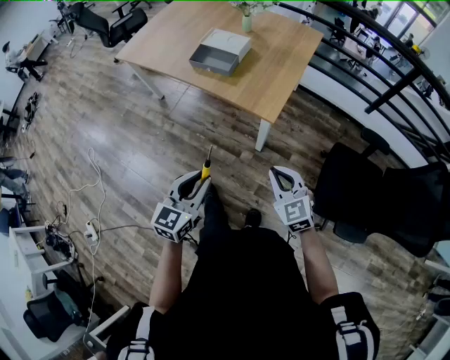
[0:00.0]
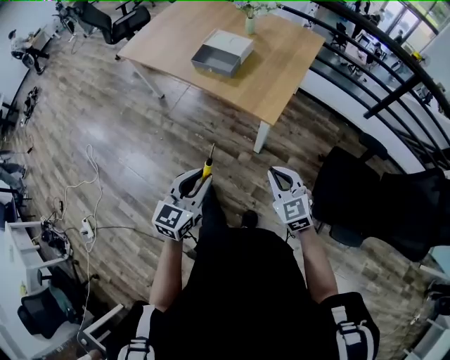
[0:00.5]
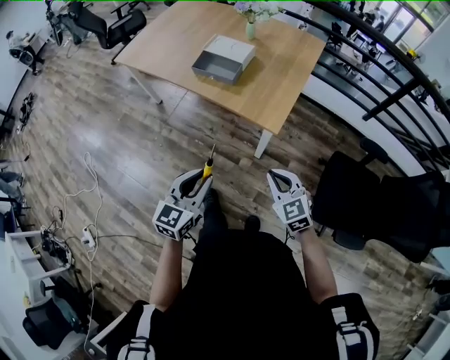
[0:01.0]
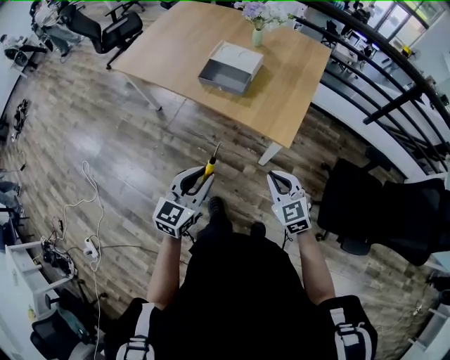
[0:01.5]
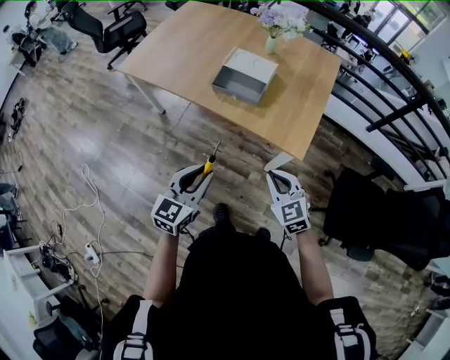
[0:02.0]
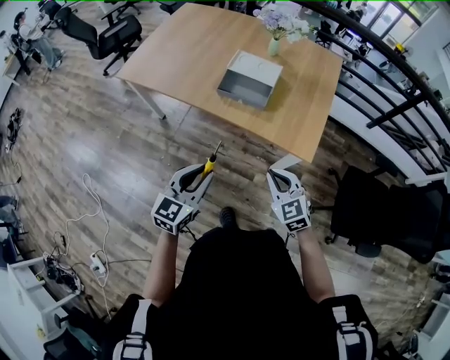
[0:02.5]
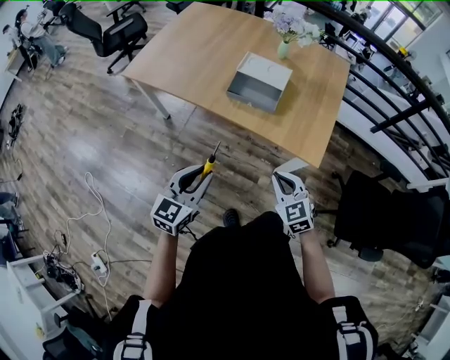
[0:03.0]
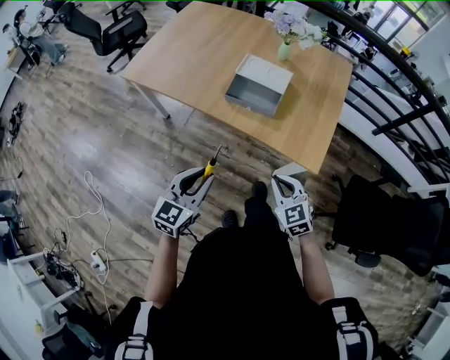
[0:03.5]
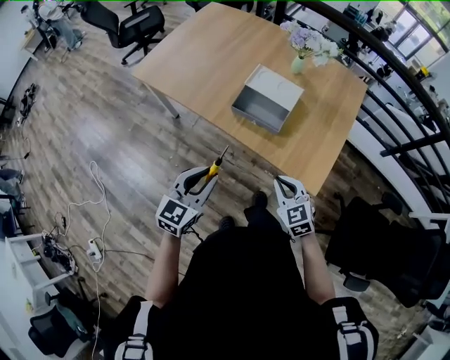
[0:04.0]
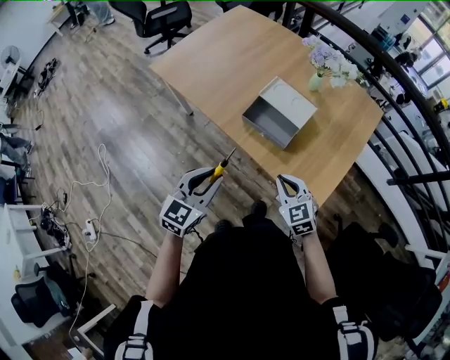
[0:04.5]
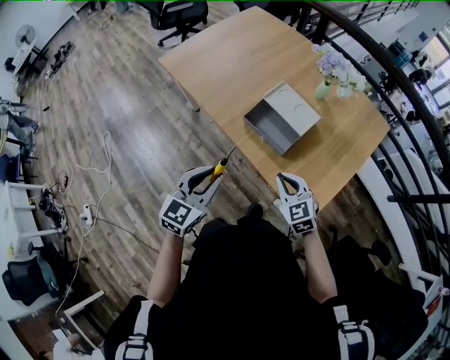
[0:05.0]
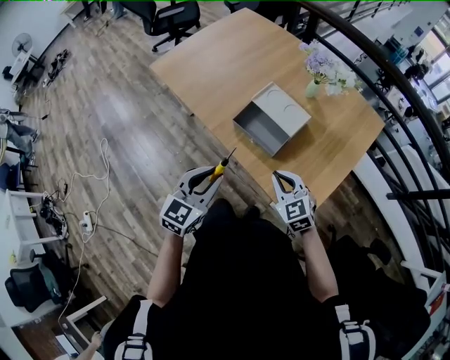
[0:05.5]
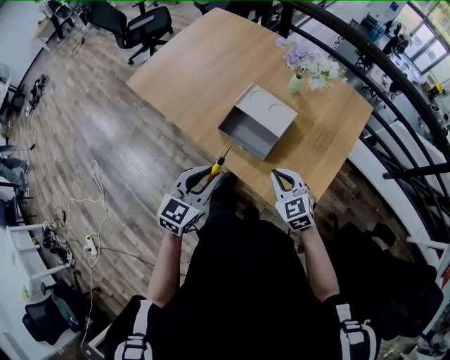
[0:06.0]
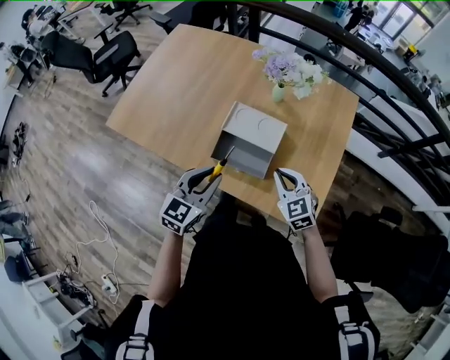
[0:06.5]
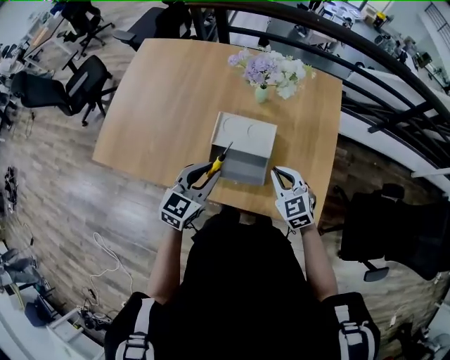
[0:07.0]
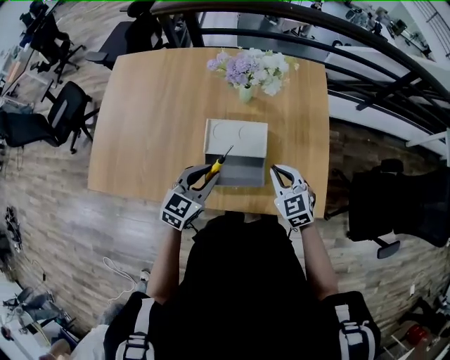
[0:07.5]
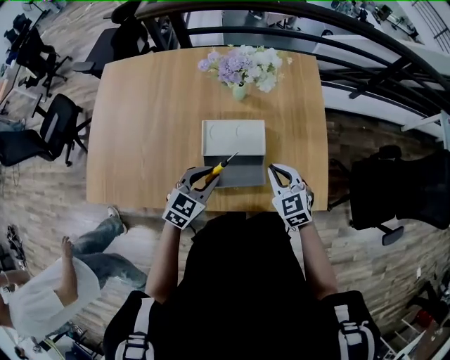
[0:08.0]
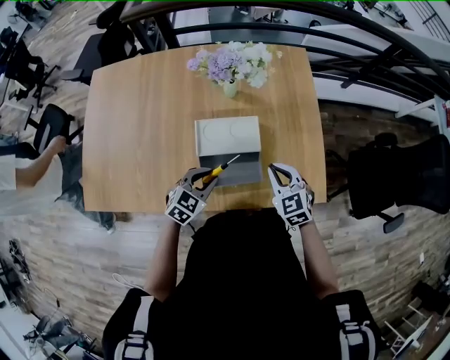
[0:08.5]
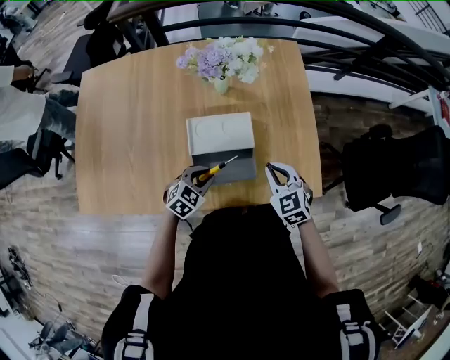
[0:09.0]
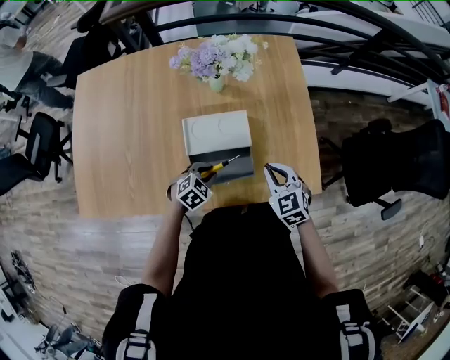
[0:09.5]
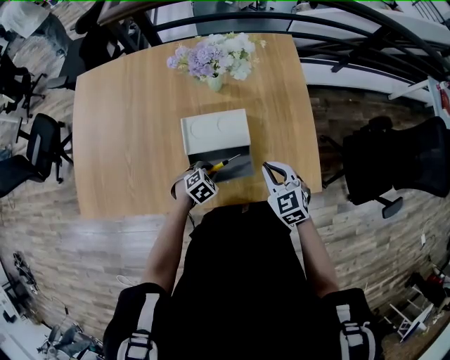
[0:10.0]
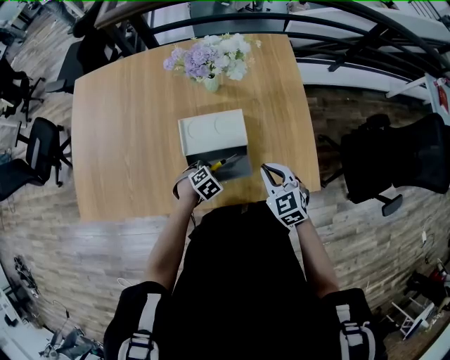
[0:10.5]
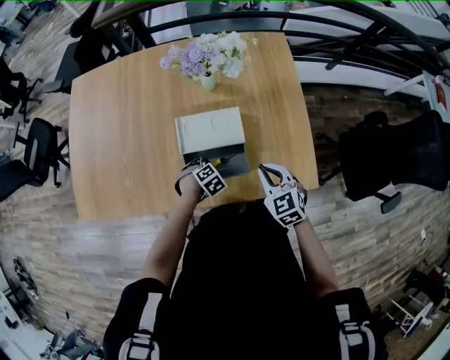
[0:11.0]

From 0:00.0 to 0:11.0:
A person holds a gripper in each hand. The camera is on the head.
From 0:00.0 to 0:02.0: The left gripper travels forward and to the left by approximately 25 cm. The right gripper shifts some 25 cm to the left and forward.
From 0:02.0 to 0:03.5: Both grippers move to the left and forward, approximately 10 cm.
From 0:03.5 to 0:05.5: The right gripper is displaced forward and to the right by some 20 cm, and changes its angle by approximately 20 degrees. The left gripper goes about 15 cm to the right and forward.
From 0:05.5 to 0:07.5: The right gripper moves some 15 cm, and turns by approximately 40 degrees. Meanwhile the left gripper moves some 30 cm, and rotates about 40 degrees.
From 0:07.5 to 0:09.0: The left gripper heads downward, covering roughly 15 cm, and changes its angle by some 30 degrees.
From 0:09.0 to 0:11.0: The left gripper travels downward by approximately 10 cm, and angles its fingers downward, by about 30 degrees.

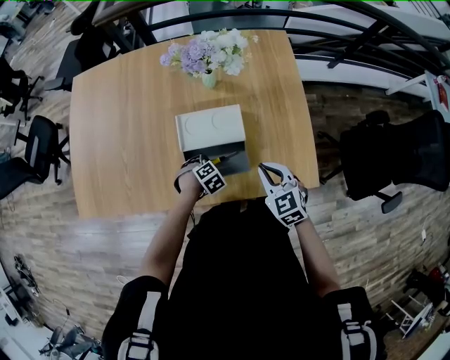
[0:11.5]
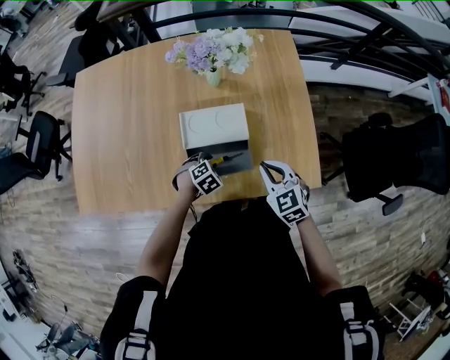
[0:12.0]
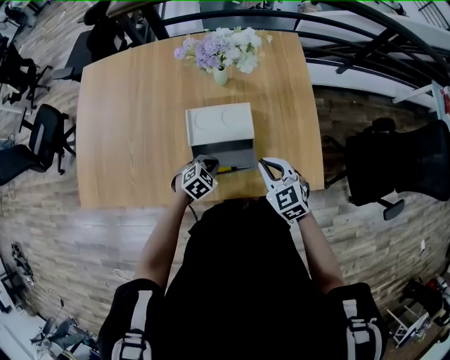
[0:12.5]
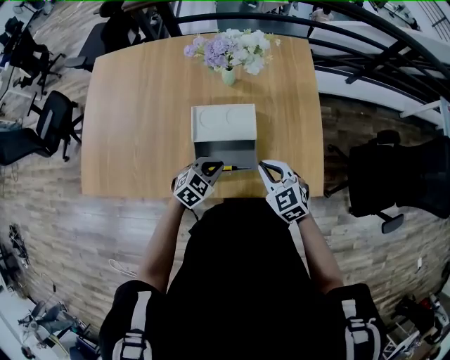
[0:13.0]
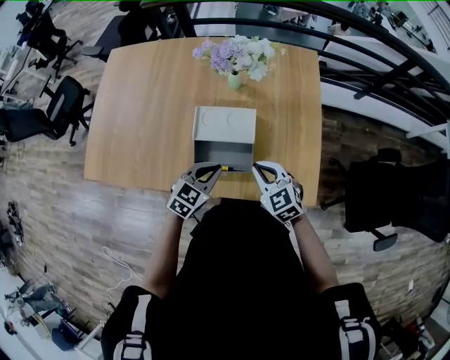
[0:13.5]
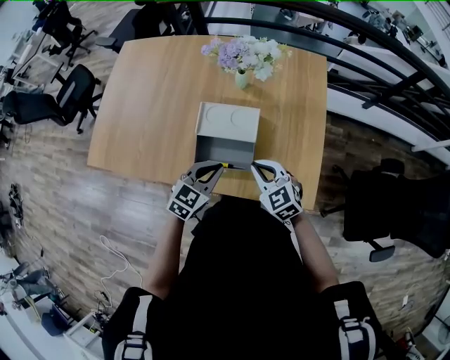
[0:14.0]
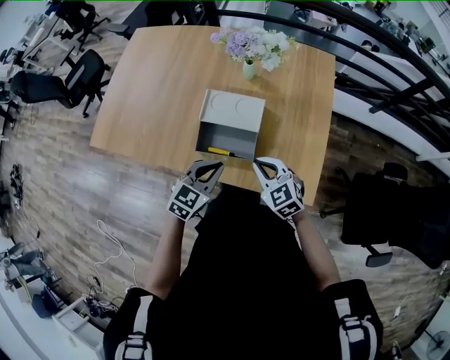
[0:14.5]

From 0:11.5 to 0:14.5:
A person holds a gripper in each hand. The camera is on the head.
From 0:11.5 to 0:13.0: The left gripper goes some 15 cm upward, tilts its fingers some 30 degrees upward, and closes.
From 0:13.0 to 0:14.5: The left gripper is displaced upward and backward by about 10 cm, and rotates roughly 30 degrees.

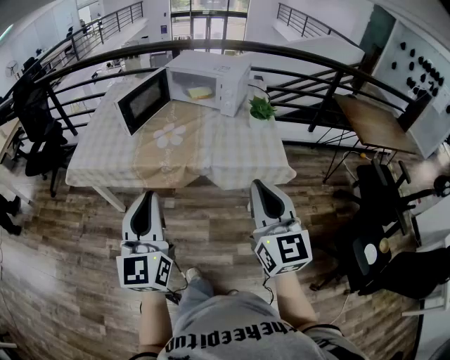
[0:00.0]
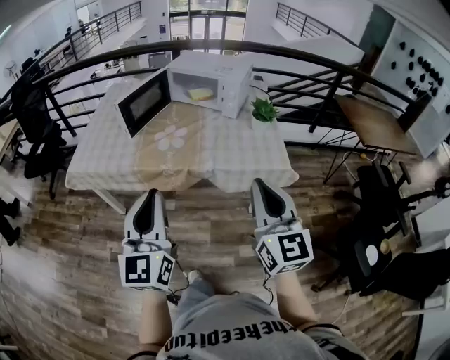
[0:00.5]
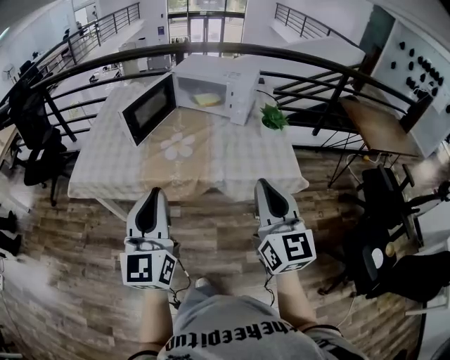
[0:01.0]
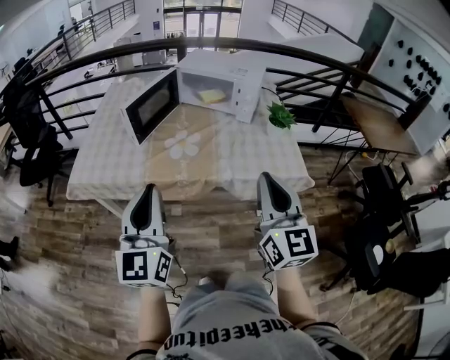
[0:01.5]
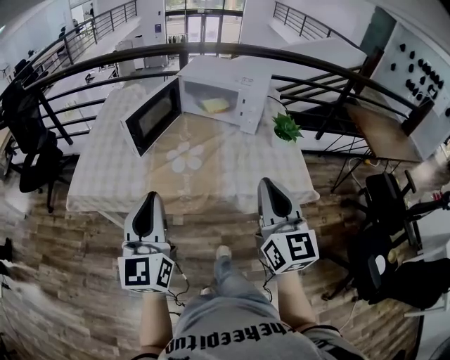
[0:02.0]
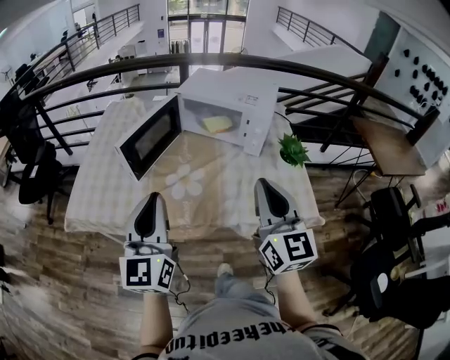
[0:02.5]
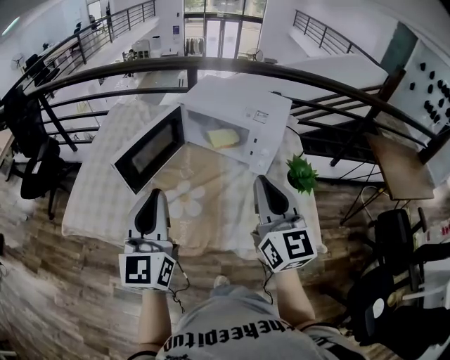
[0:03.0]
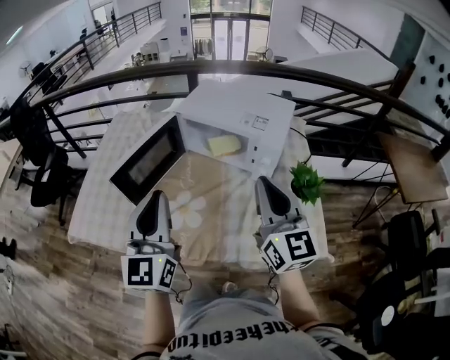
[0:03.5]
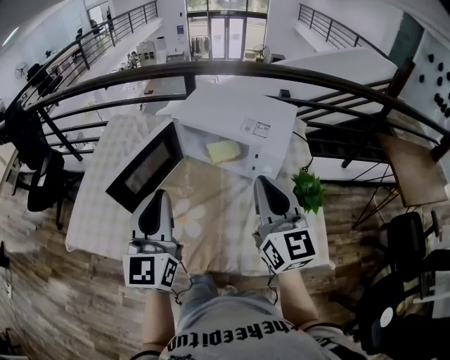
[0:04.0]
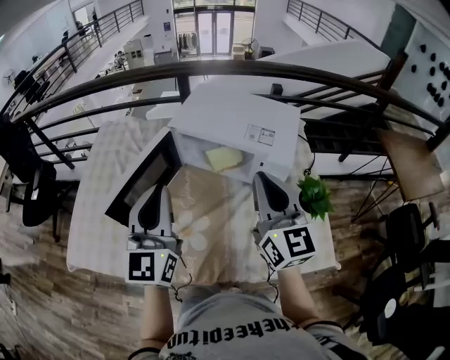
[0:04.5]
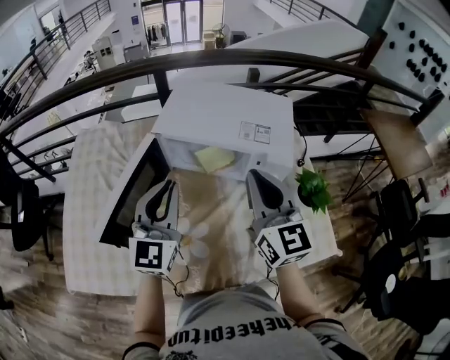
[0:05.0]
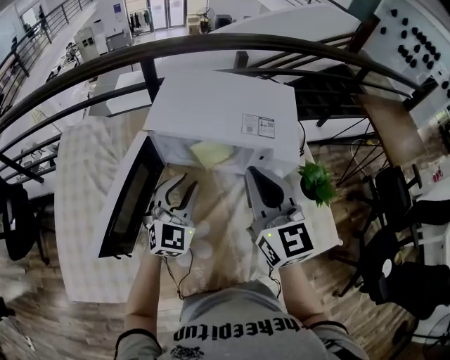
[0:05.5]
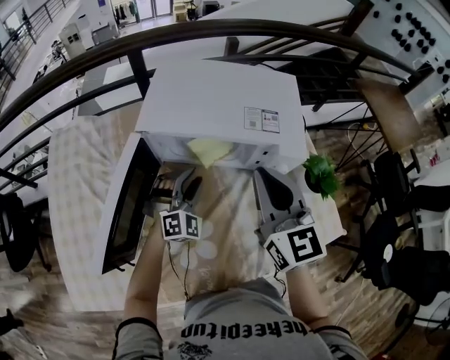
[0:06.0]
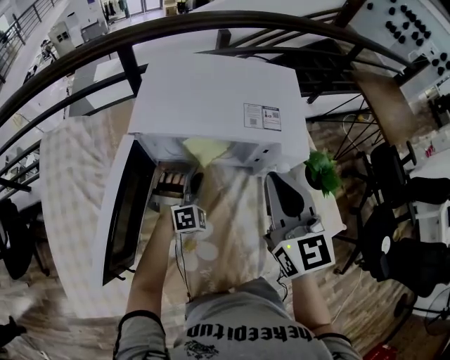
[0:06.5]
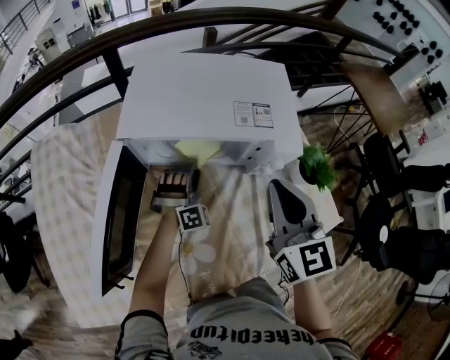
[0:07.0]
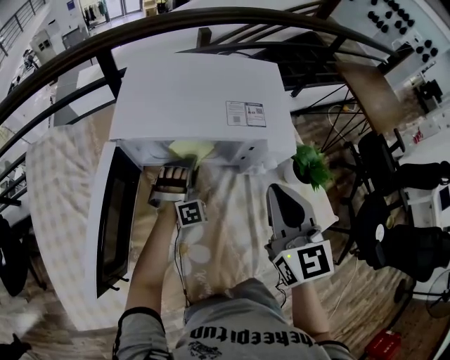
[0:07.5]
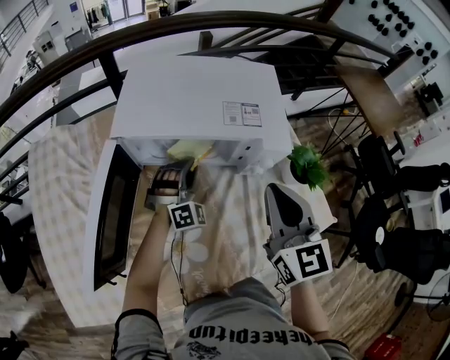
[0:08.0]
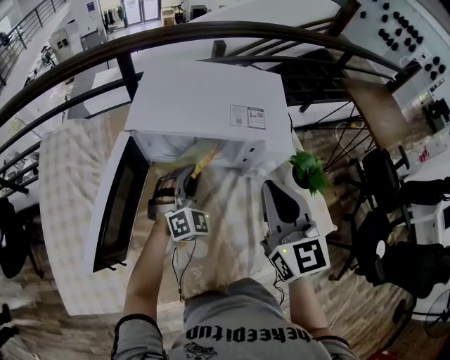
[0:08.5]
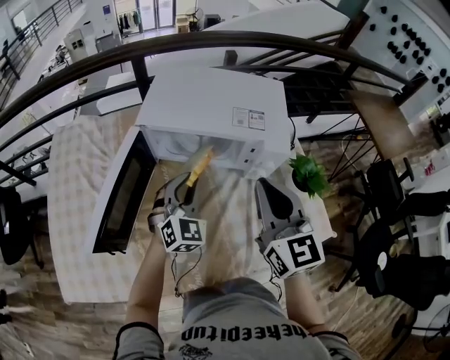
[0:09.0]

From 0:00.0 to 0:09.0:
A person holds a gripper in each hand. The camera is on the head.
From 0:00.0 to 0:02.0: The two grippers go roughly 20 cm forward and to the left.
From 0:02.0 to 0:04.5: The two grippers go approximately 35 cm forward.
From 0:04.5 to 0:07.0: The left gripper goes about 40 cm downward and forward, rotates around the line of its fingers by roughly 70 degrees, clockwise from behind, and opens up; the right gripper moves downward and forward, roughly 10 cm, and turns by about 30 degrees.
From 0:07.0 to 0:09.0: The right gripper moves some 5 cm. The left gripper shifts some 15 cm upward and backward, twists roughly 40 degrees counterclockwise, seen from behind, and closes up.

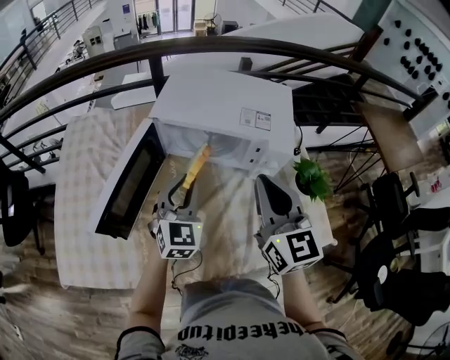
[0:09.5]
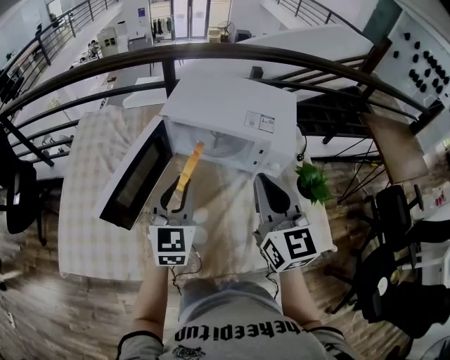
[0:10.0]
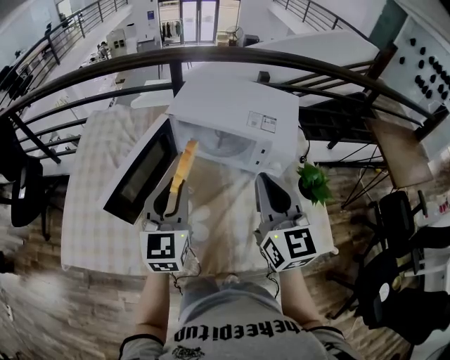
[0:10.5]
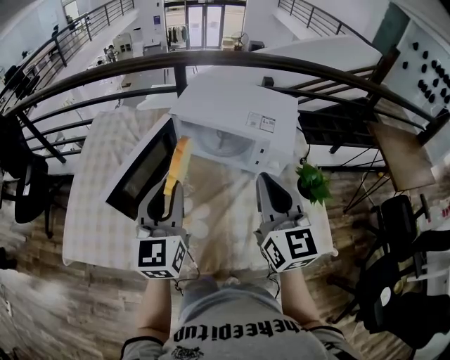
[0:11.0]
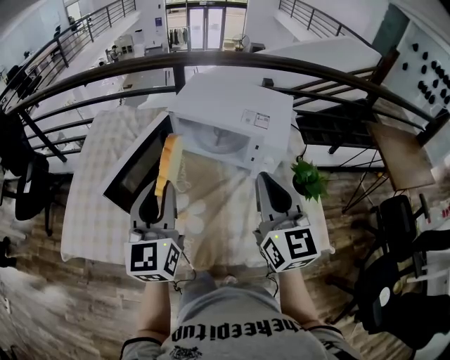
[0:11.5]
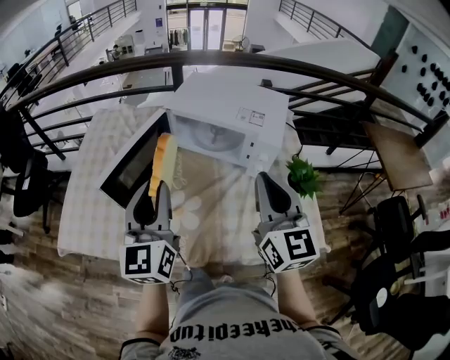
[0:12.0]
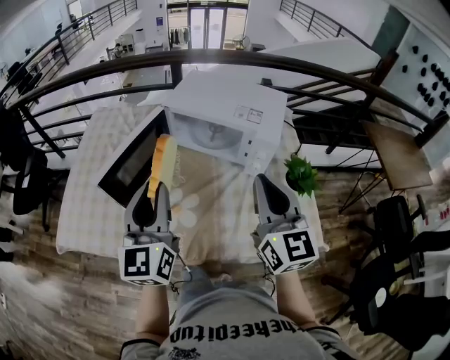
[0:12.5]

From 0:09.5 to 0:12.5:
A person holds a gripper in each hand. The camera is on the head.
From 0:09.5 to 0:11.0: The left gripper shifts roughly 15 cm upward, backward and to the left, and changes its angle by about 30 degrees. Meanwhile the right gripper moves some 5 cm.
From 0:11.0 to 0:12.5: The two grippers go roughly 5 cm backward.
